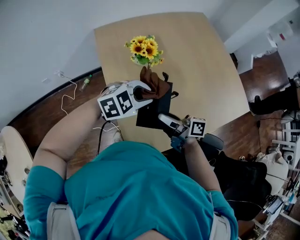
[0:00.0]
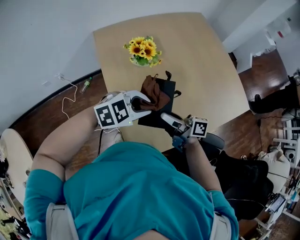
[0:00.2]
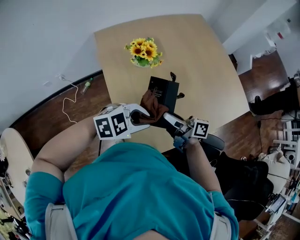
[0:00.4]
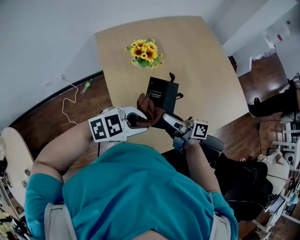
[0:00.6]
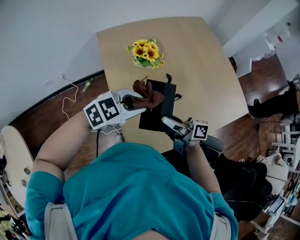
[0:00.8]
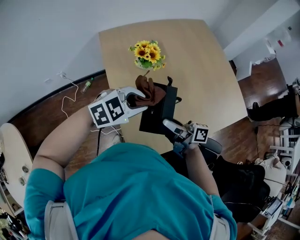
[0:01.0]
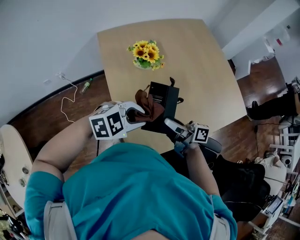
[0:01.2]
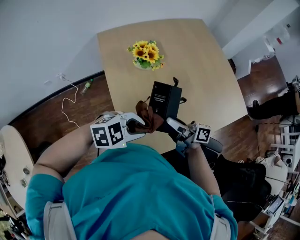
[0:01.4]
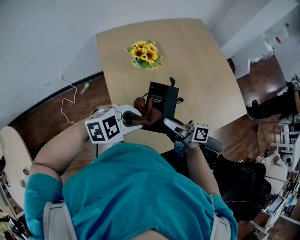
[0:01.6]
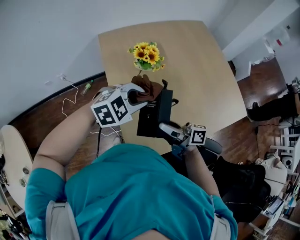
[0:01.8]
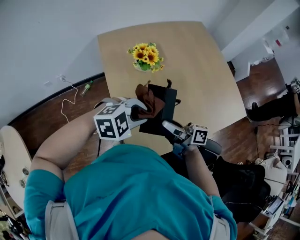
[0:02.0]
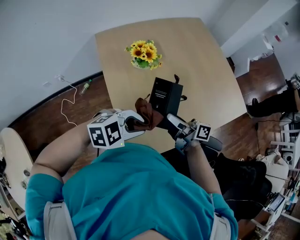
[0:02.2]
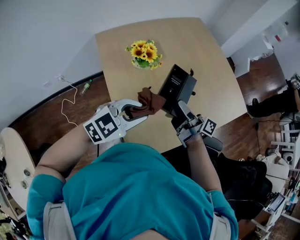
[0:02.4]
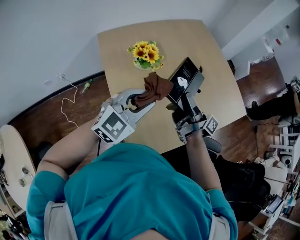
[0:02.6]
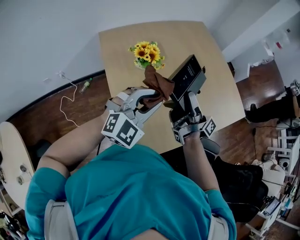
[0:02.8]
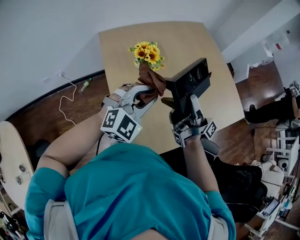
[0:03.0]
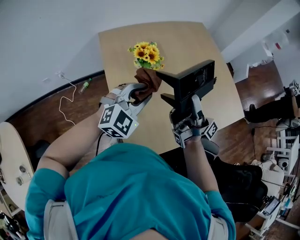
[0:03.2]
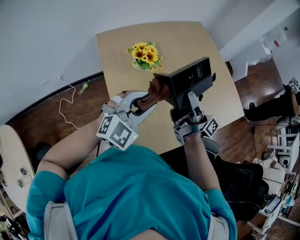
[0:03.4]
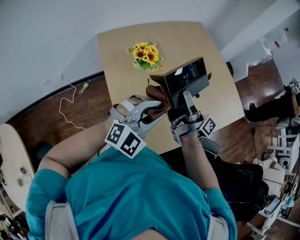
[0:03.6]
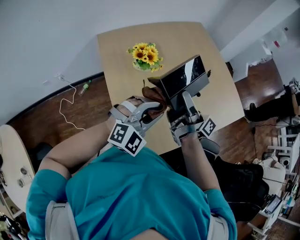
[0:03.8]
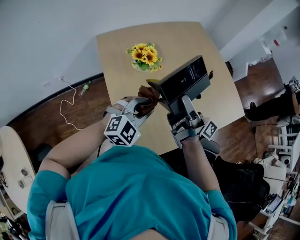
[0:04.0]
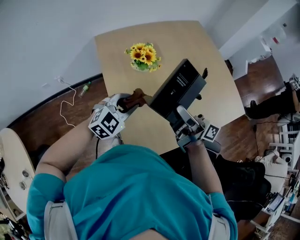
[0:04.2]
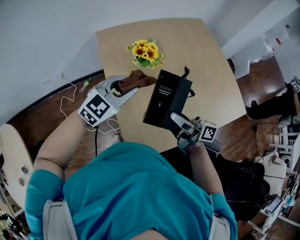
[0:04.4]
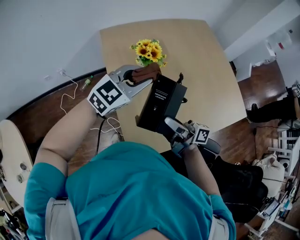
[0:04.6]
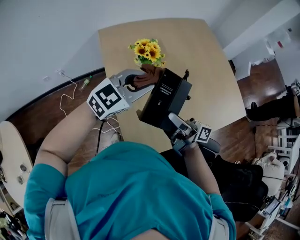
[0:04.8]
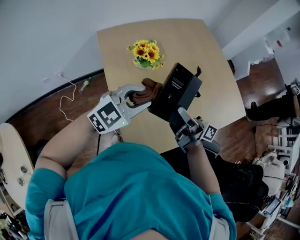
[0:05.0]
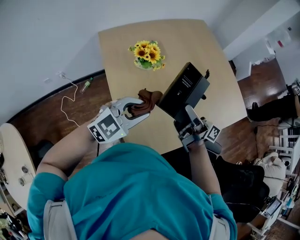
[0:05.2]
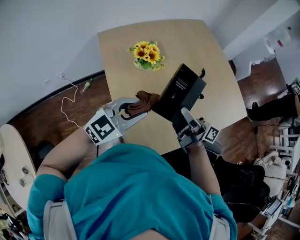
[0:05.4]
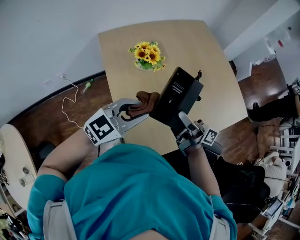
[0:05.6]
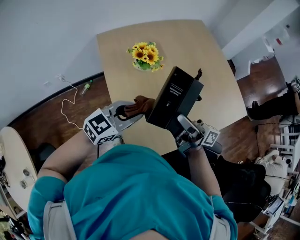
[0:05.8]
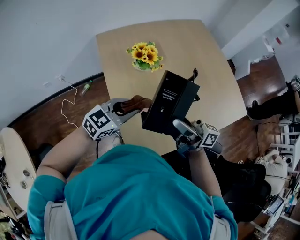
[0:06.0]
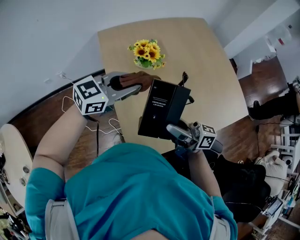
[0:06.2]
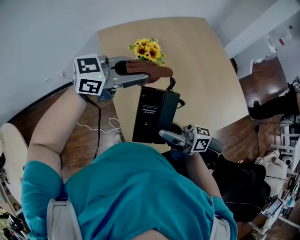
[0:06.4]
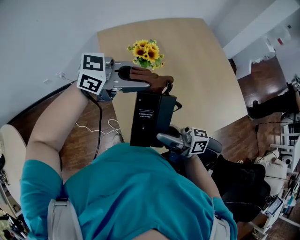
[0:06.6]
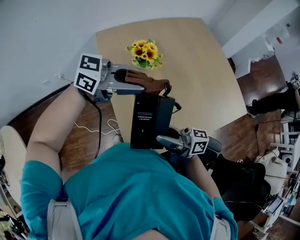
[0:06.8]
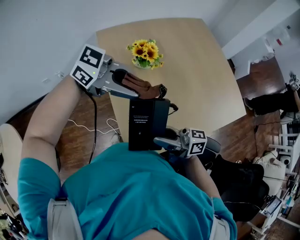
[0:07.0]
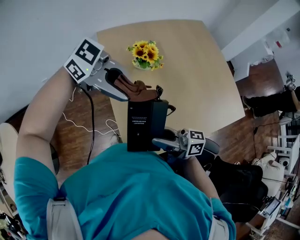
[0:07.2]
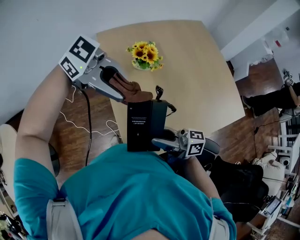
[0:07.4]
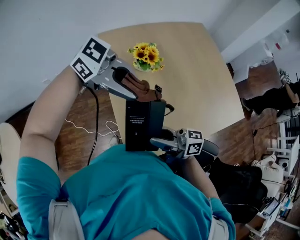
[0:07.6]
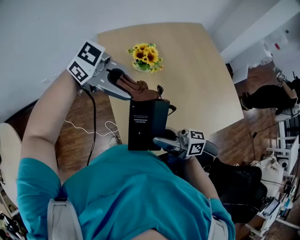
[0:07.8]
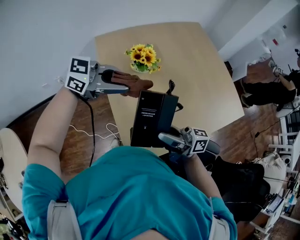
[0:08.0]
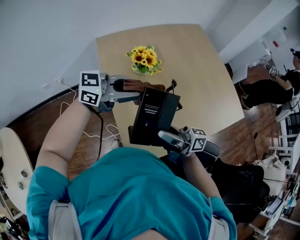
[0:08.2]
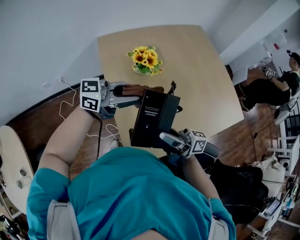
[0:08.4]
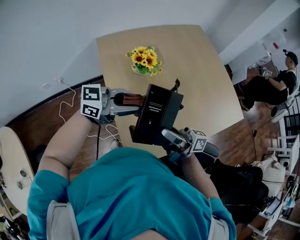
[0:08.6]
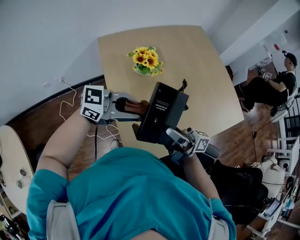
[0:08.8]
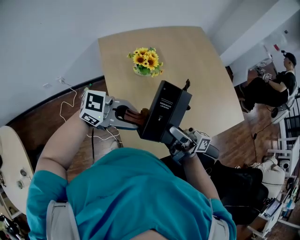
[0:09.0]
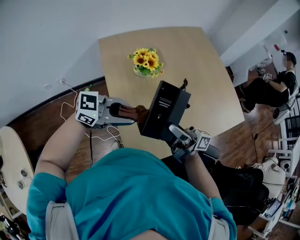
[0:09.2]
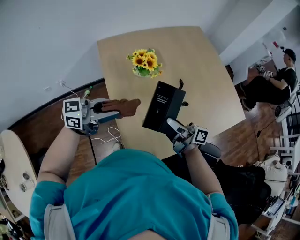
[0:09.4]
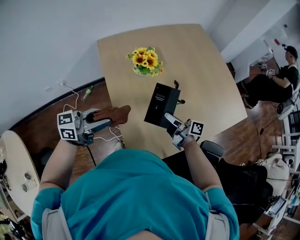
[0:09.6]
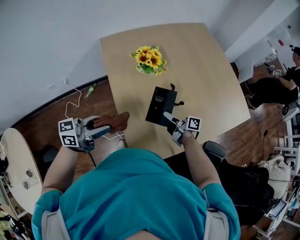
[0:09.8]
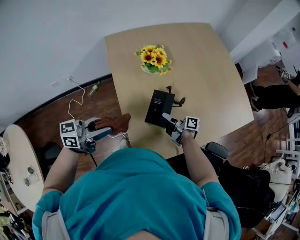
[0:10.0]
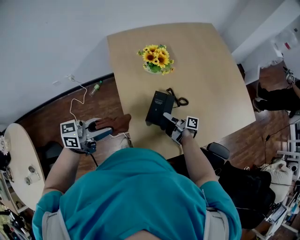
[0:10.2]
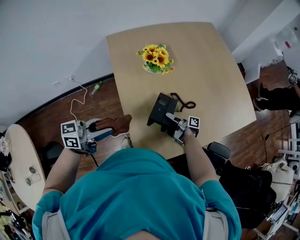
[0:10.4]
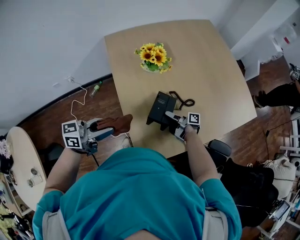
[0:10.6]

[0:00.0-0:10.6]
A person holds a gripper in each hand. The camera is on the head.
0.0 to 1.6 s: The left gripper moves approximately 10 cm.
1.6 to 3.0 s: The left gripper ends up about 10 cm from where it was, and changes its angle by some 40 degrees. Meanwhile the right gripper is displaced upward by roughly 10 cm, and rotates approximately 40 degrees.
3.0 to 4.6 s: The left gripper moves roughly 5 cm to the left and comes back, and rotates about 20 degrees, while the right gripper moves backward, downward and to the left, some 15 cm, and changes its angle by roughly 30 degrees.
4.6 to 6.0 s: The left gripper heads downward and backward, covering roughly 10 cm. Meanwhile the right gripper moves upward, about 5 cm.
6.0 to 7.6 s: The right gripper shifts by roughly 10 cm; the left gripper heads upward, covering some 15 cm, and rotates roughly 50 degrees.
7.6 to 9.0 s: The right gripper shifts by approximately 10 cm, and swivels approximately 20 degrees. The left gripper is displaced downward by approximately 10 cm.
9.0 to 10.6 s: The left gripper ends up roughly 15 cm from where it was, and rotates about 40 degrees; the right gripper goes some 30 cm downward, and tilts its fingers roughly 40 degrees downward.

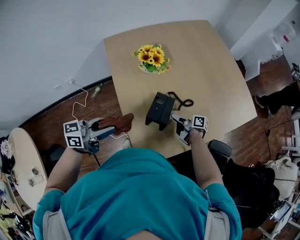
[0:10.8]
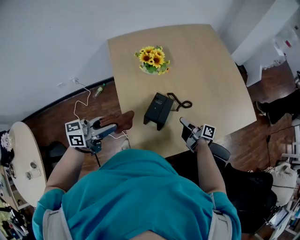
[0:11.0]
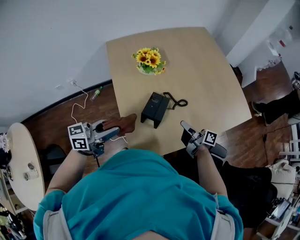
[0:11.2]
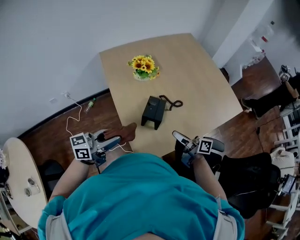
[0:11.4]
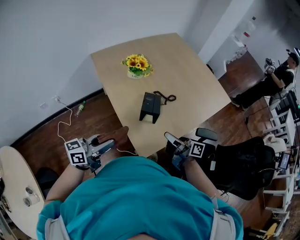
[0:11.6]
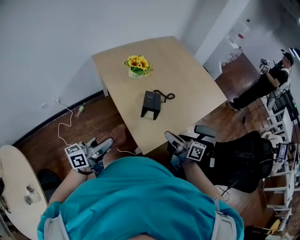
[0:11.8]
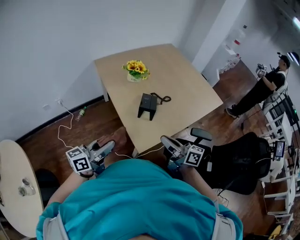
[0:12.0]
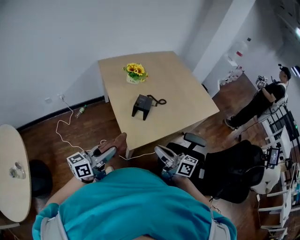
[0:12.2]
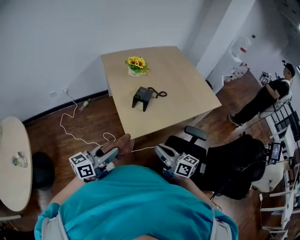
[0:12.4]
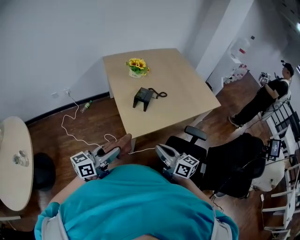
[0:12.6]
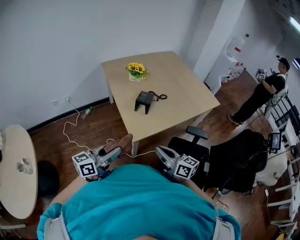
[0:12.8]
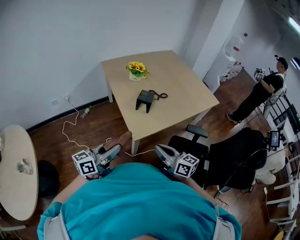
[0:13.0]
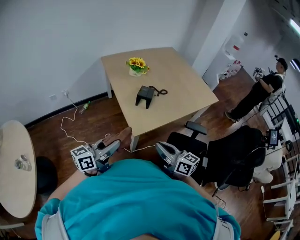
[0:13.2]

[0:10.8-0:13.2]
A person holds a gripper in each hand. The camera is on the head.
10.8 to 12.0 s: The right gripper moves backward and upward, roughly 40 cm, rotates approximately 40 degrees, and closes. Meanwhile the left gripper moves backward, approximately 20 cm.
12.0 to 13.2 s: Both grippers travel together backward, roughly 15 cm.

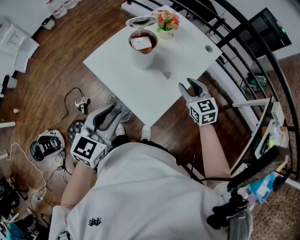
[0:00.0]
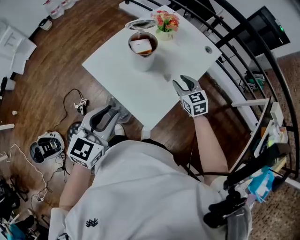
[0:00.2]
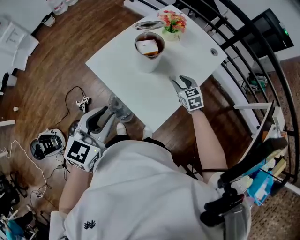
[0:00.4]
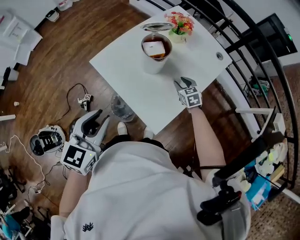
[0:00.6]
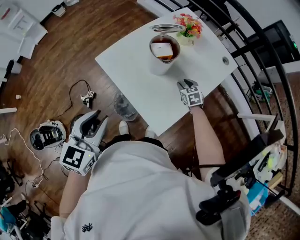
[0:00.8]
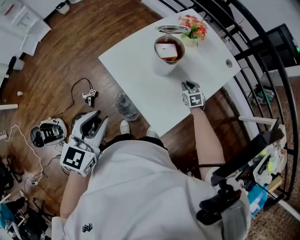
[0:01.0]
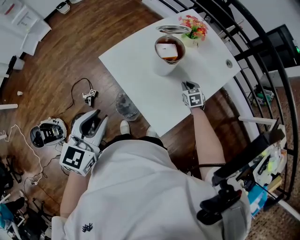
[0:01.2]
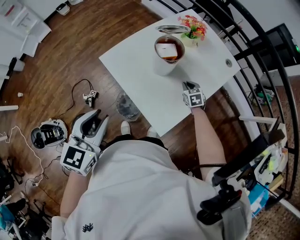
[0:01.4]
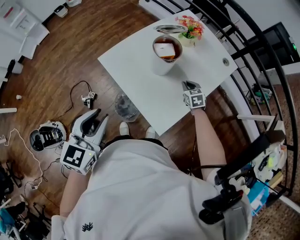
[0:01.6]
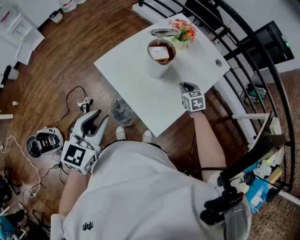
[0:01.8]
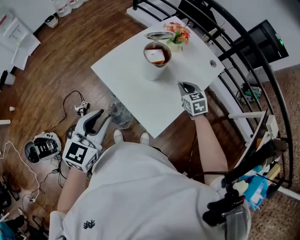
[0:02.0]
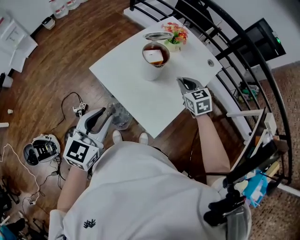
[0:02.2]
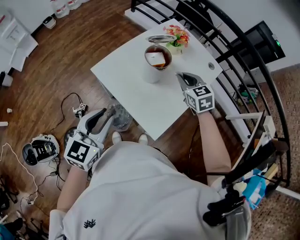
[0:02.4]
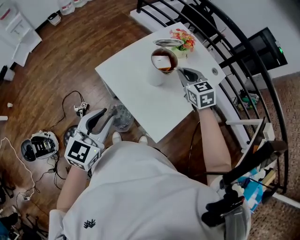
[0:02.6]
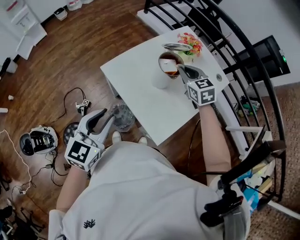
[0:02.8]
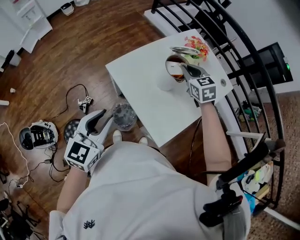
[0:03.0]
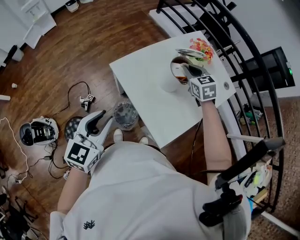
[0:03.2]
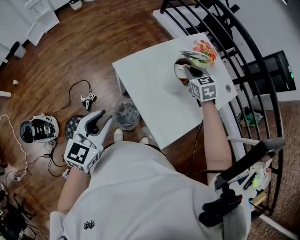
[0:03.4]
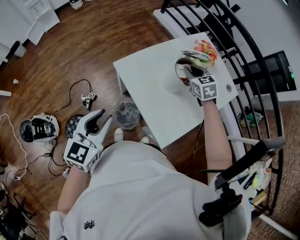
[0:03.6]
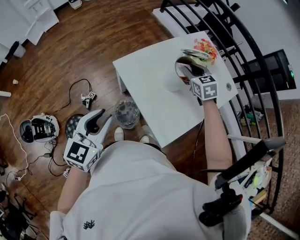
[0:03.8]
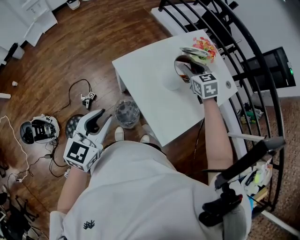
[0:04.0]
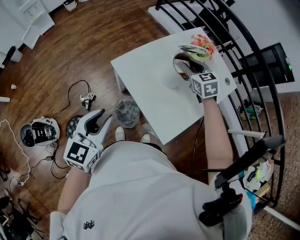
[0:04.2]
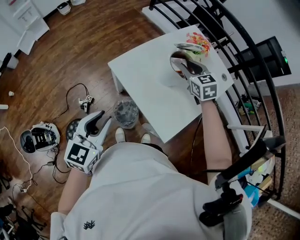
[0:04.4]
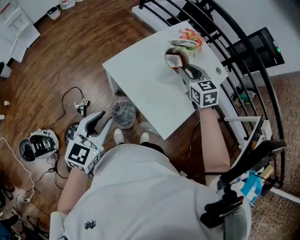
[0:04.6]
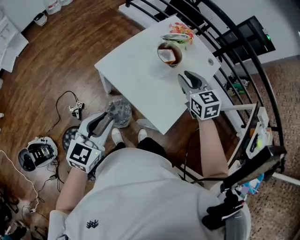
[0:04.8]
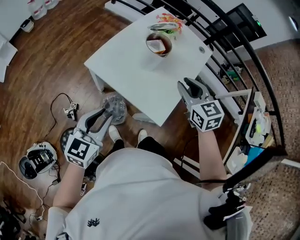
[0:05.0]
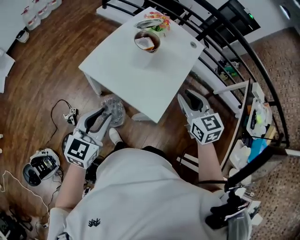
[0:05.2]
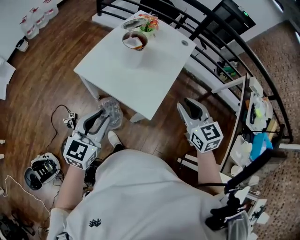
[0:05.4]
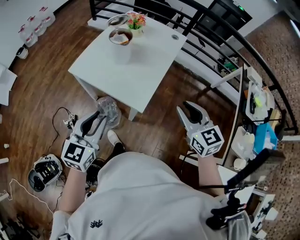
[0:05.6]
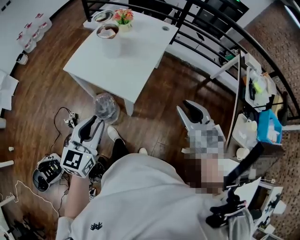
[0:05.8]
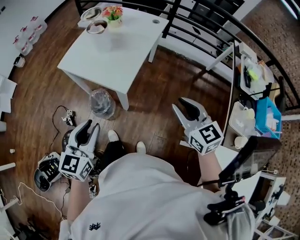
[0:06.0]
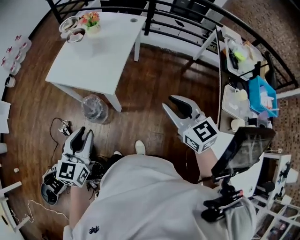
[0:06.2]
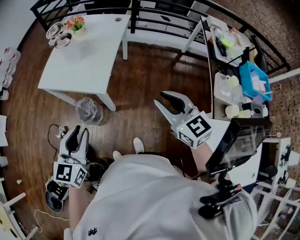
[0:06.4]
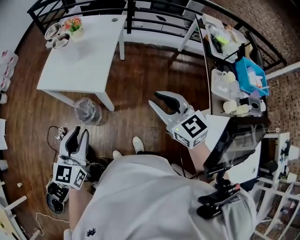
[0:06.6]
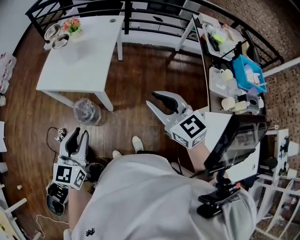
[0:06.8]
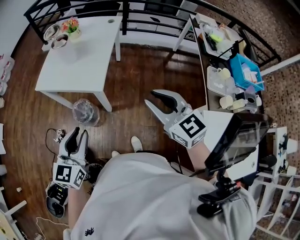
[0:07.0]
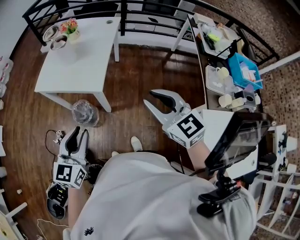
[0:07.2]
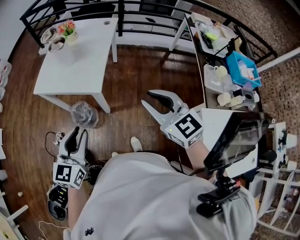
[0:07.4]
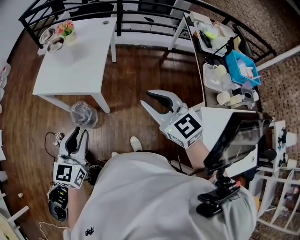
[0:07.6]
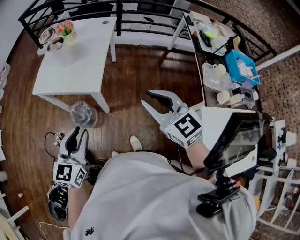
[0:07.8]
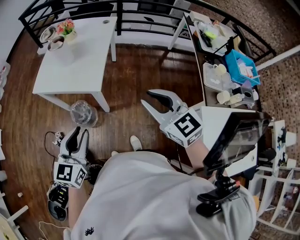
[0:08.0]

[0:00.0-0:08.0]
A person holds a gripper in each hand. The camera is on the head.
0.0 to 1.6 s: The right gripper is displaced downward and forward by approximately 20 cm, and closes its fingers, while the left gripper is displaced to the left by roughly 10 cm.
1.6 to 3.2 s: The right gripper travels upward, to the left and forward by roughly 25 cm; the left gripper heads to the left, covering some 5 cm.
3.2 to 4.8 s: The right gripper travels backward by some 15 cm, and opens up.
4.8 to 6.4 s: The right gripper is displaced backward and to the right by about 50 cm, and rotates some 20 degrees; the left gripper heads to the right and backward, covering roughly 35 cm.
6.4 to 8.0 s: The right gripper moves to the left, roughly 5 cm.

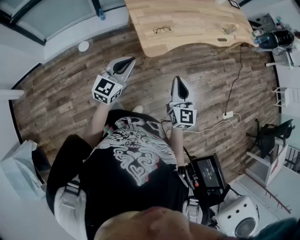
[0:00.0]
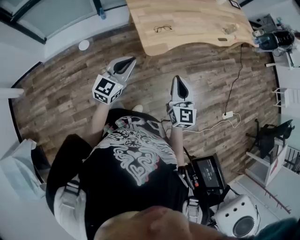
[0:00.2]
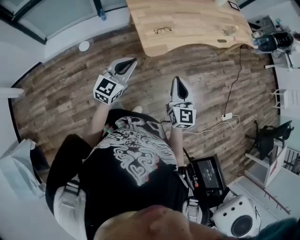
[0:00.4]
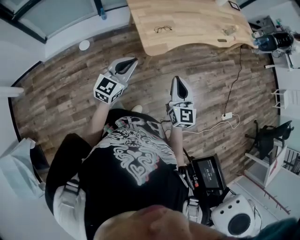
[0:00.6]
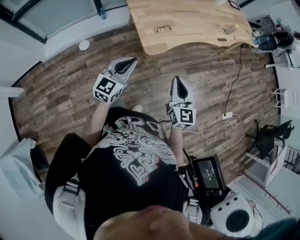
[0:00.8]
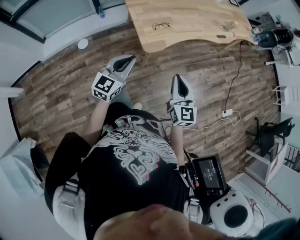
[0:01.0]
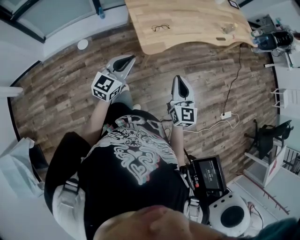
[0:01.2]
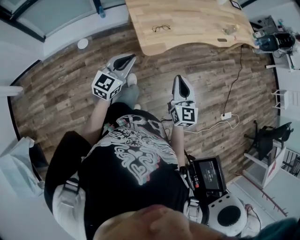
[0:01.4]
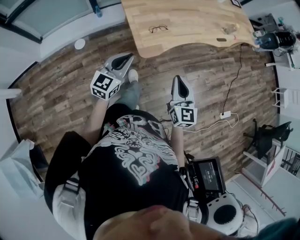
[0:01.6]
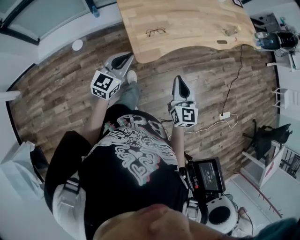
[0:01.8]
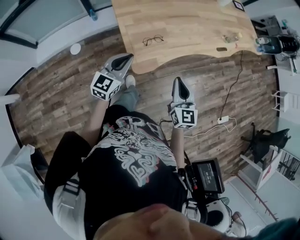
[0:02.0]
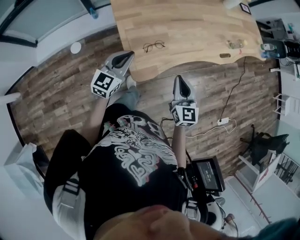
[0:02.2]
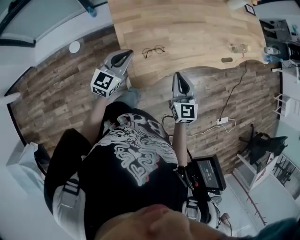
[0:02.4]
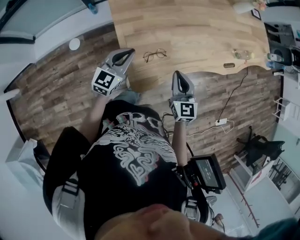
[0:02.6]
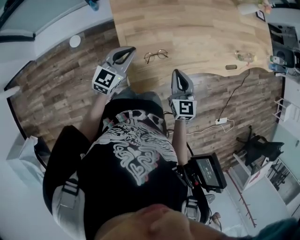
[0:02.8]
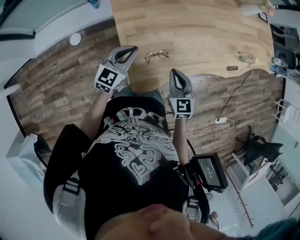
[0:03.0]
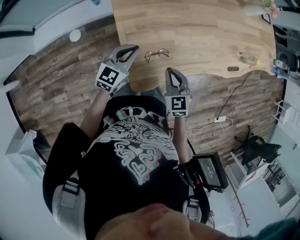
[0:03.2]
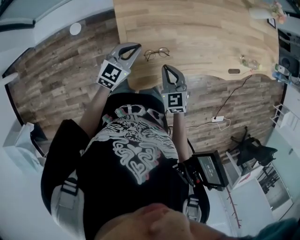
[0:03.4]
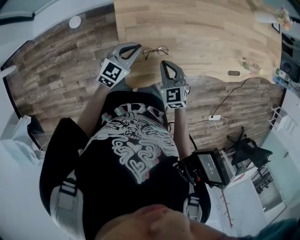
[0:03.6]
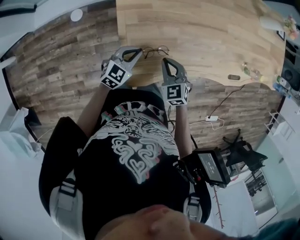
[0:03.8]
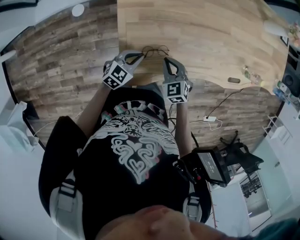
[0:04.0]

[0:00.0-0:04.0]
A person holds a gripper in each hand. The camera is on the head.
0.0 to 1.4 s: There are only small adjustments of the grippers.
1.4 to 2.6 s: The two grippers go roughly 35 cm forward.
2.6 to 4.0 s: The right gripper shifts about 20 cm downward and forward, and rotates some 40 degrees, while the left gripper is displaced downward by some 15 cm, and changes its angle by approximately 20 degrees.
